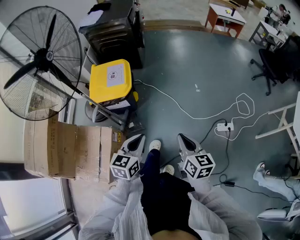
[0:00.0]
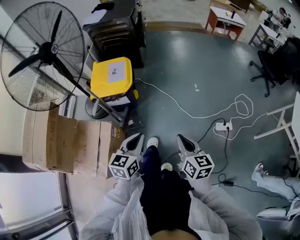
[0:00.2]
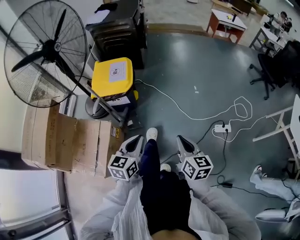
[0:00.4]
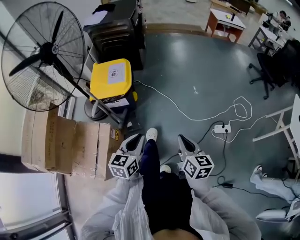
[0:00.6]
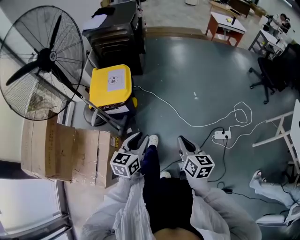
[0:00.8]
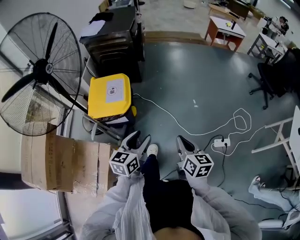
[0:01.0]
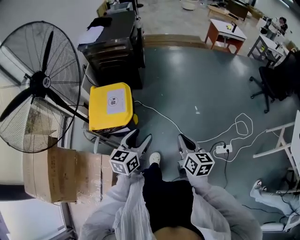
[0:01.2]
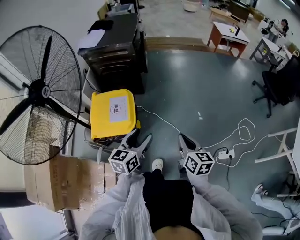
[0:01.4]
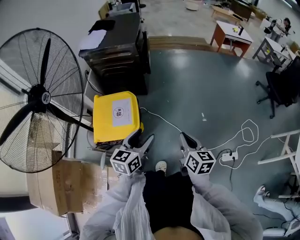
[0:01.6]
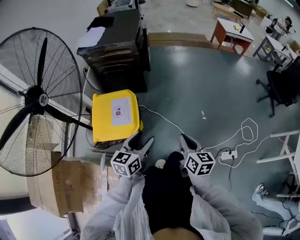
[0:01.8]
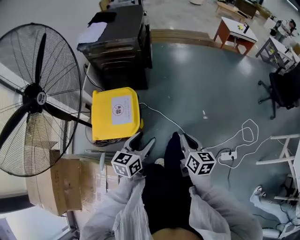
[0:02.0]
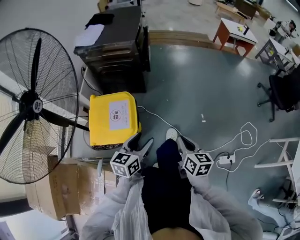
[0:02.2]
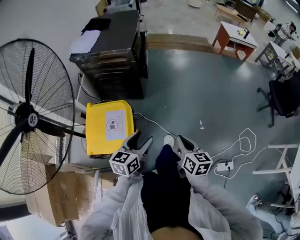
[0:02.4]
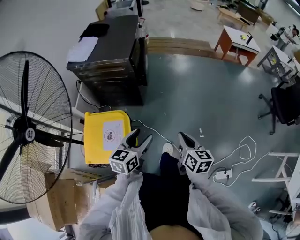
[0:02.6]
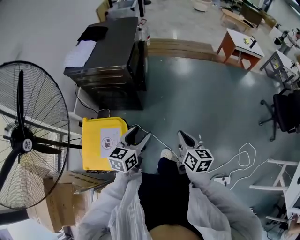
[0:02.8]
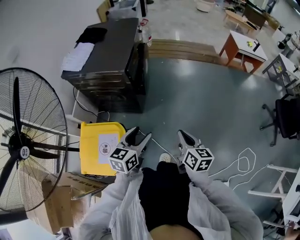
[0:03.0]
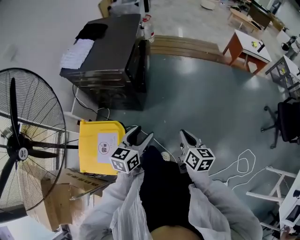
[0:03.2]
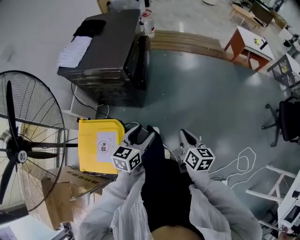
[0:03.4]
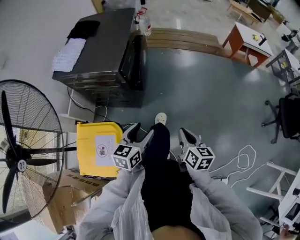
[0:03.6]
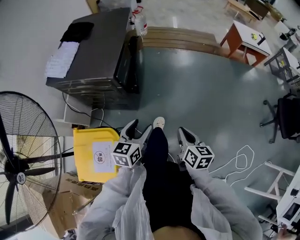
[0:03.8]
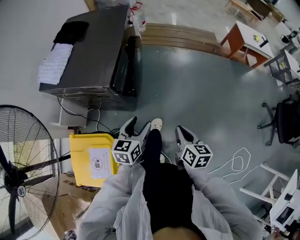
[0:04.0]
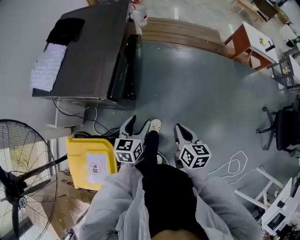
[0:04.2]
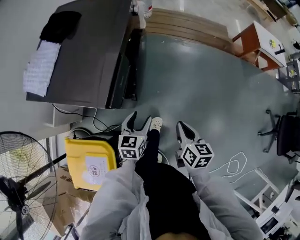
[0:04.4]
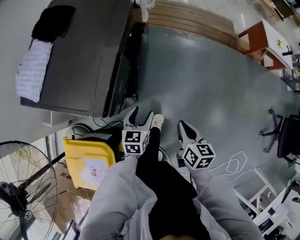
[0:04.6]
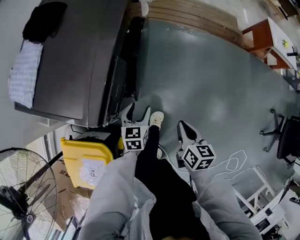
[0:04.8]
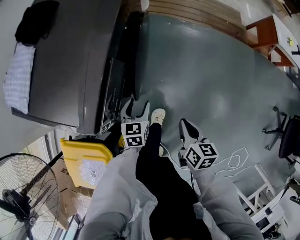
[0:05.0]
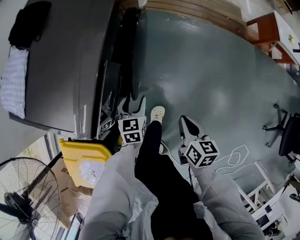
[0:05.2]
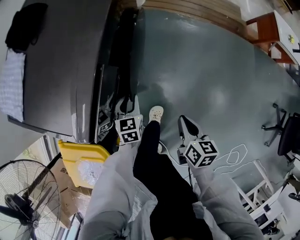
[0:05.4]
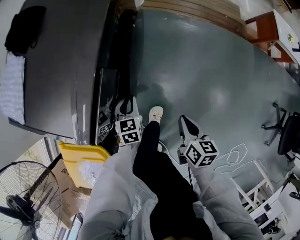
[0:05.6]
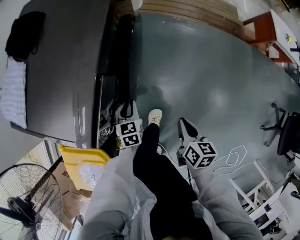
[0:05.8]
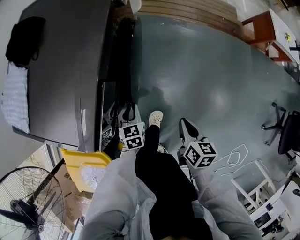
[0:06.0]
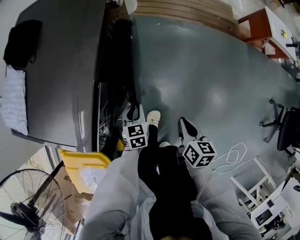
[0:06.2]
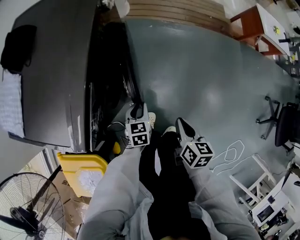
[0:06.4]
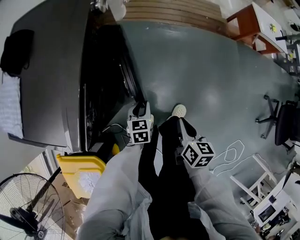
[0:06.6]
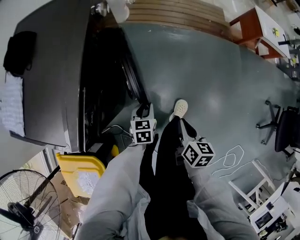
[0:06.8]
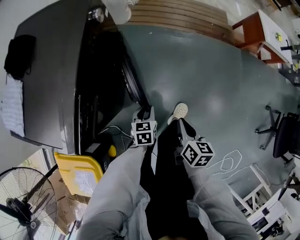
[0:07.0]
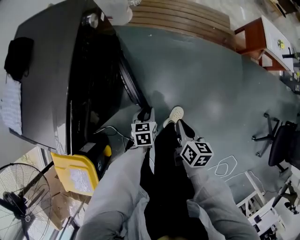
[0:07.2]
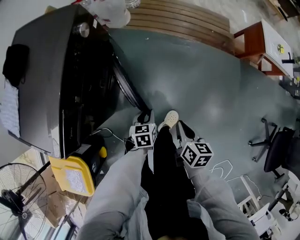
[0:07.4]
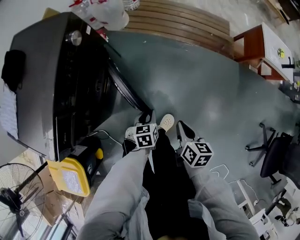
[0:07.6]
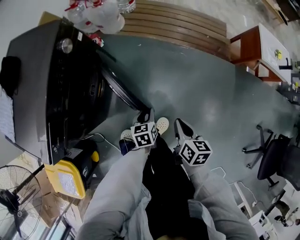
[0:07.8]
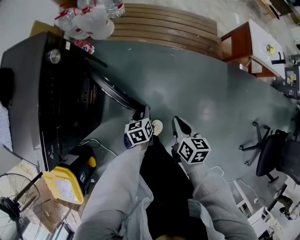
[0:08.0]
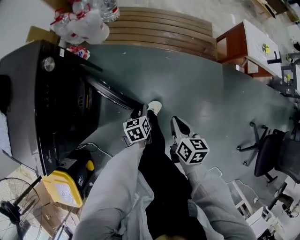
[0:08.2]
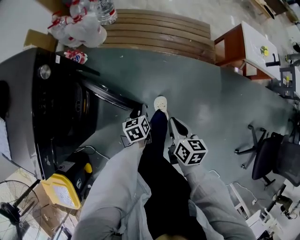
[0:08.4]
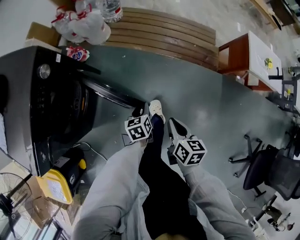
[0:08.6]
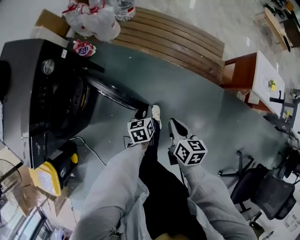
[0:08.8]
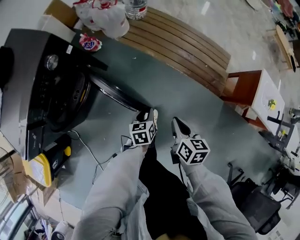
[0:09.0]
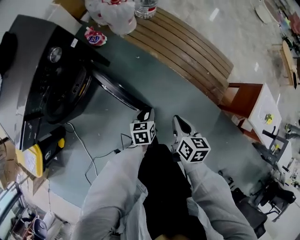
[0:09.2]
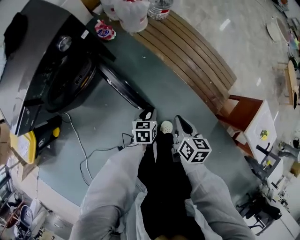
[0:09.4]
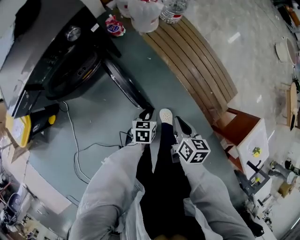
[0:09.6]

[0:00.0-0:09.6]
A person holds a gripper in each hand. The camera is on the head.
0.0 to 1.6 s: The grippers both shift forward by roughly 30 cm. The left gripper opens.
1.6 to 3.2 s: The two grippers go some 35 cm forward.
3.2 to 4.8 s: Both grippers travel together forward and downward, approximately 40 cm. The left gripper changes its angle by about 30 degrees.
4.8 to 6.4 s: The grippers both shift to the right by about 5 cm. The left gripper closes its fingers.
6.4 to 8.0 s: The two grippers go approximately 30 cm to the right and forward. The left gripper turns by roughly 20 degrees.
8.0 to 9.6 s: The right gripper ends up roughly 30 cm from where it was, and rotates roughly 40 degrees. The left gripper ends up about 25 cm from where it was, and swivels about 20 degrees.

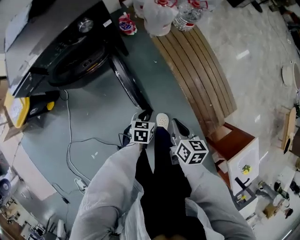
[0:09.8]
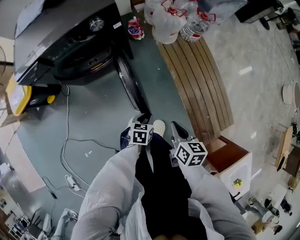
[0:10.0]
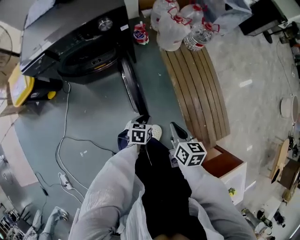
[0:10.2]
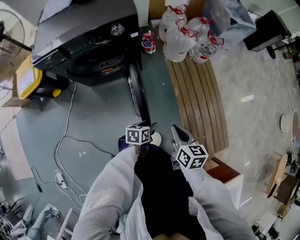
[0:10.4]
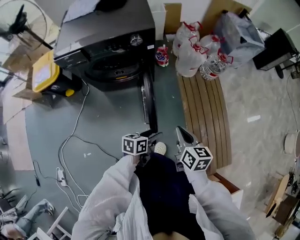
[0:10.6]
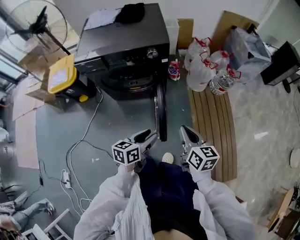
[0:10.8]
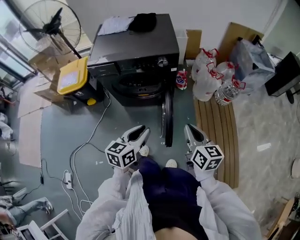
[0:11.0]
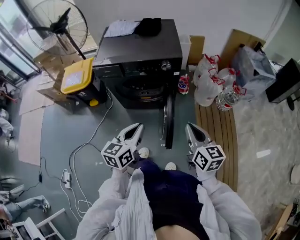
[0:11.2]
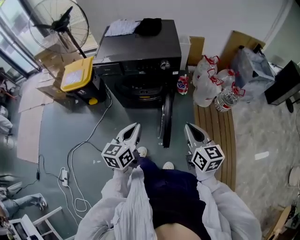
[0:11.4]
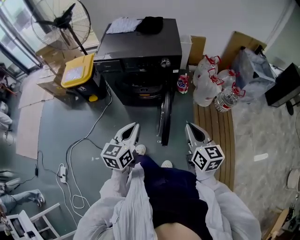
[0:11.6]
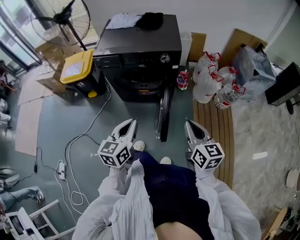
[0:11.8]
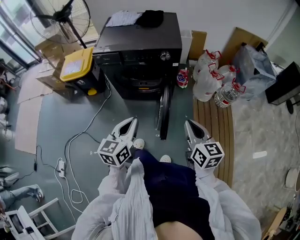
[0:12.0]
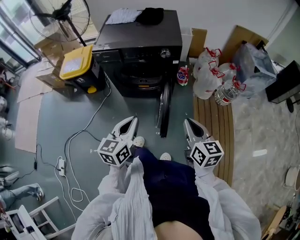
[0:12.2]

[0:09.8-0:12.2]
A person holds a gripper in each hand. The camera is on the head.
9.8 to 11.0 s: The right gripper heads upward, covering some 20 cm, and turns by some 40 degrees, while the left gripper shifts approximately 30 cm upward, tilts its fingers roughly 30 degrees upward, and opens, then closes again.
11.0 to 12.2 s: The left gripper ends up about 5 cm from where it was, and closes up.

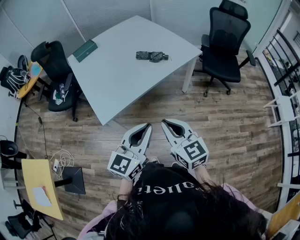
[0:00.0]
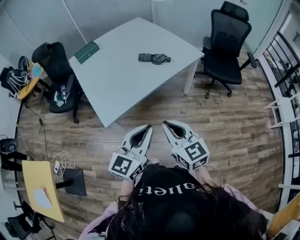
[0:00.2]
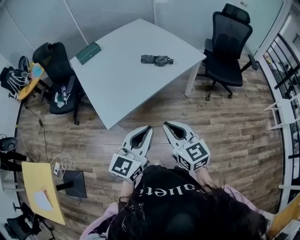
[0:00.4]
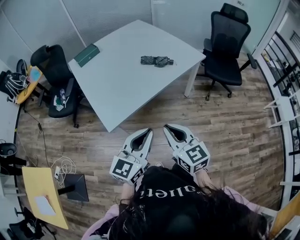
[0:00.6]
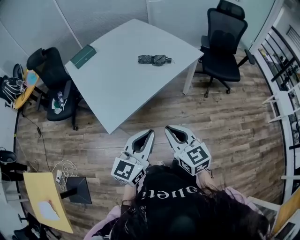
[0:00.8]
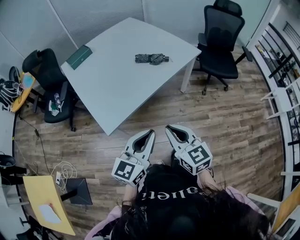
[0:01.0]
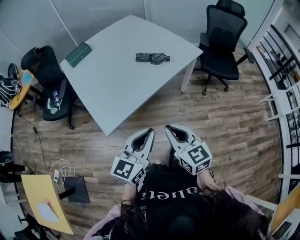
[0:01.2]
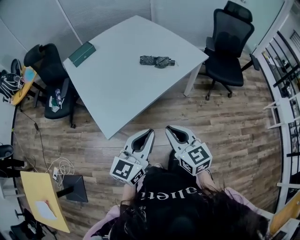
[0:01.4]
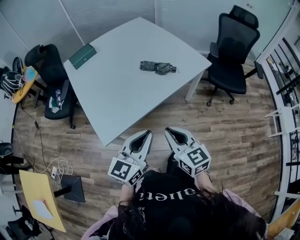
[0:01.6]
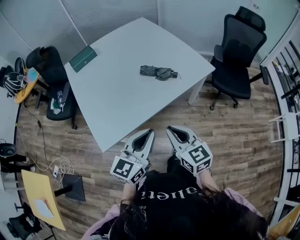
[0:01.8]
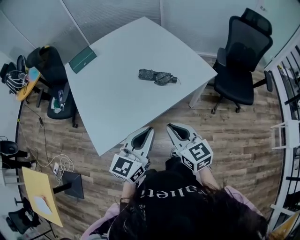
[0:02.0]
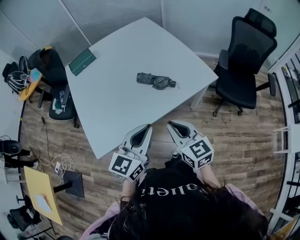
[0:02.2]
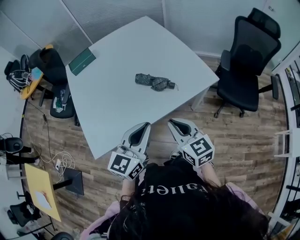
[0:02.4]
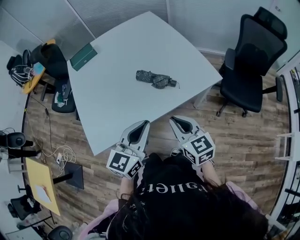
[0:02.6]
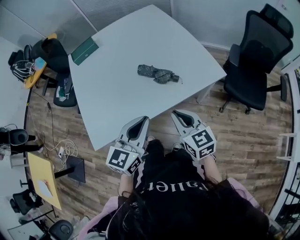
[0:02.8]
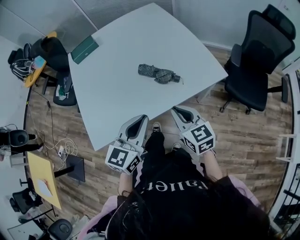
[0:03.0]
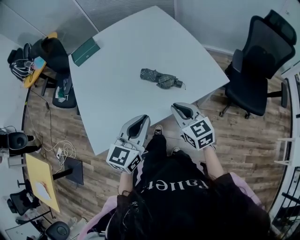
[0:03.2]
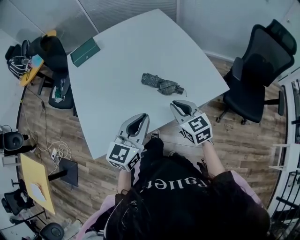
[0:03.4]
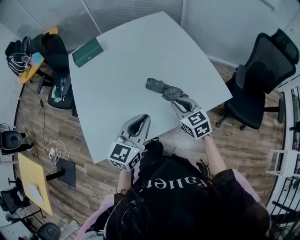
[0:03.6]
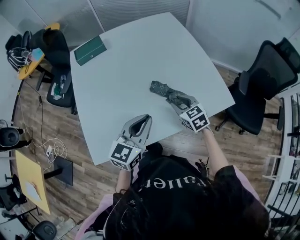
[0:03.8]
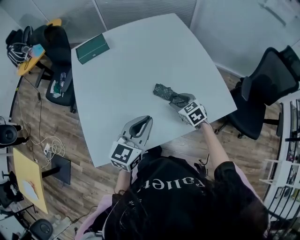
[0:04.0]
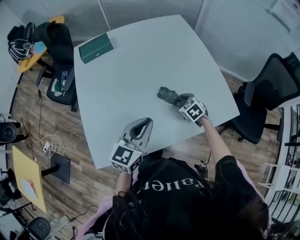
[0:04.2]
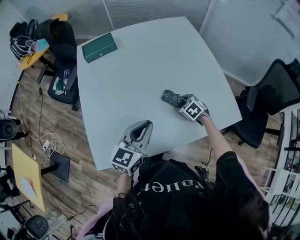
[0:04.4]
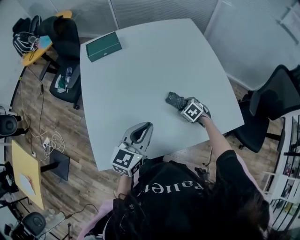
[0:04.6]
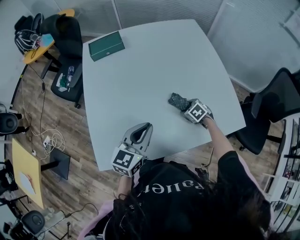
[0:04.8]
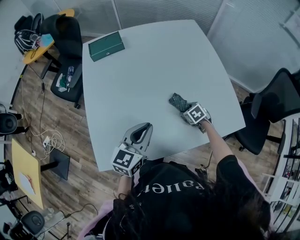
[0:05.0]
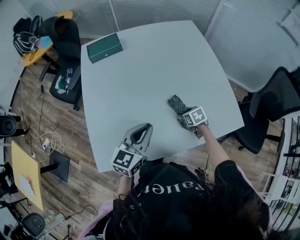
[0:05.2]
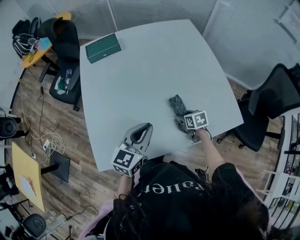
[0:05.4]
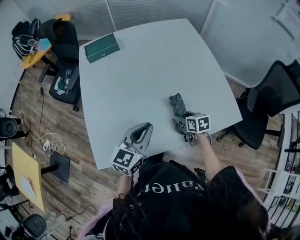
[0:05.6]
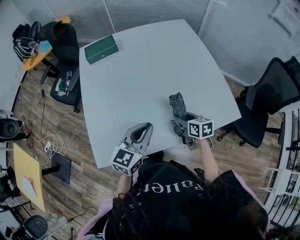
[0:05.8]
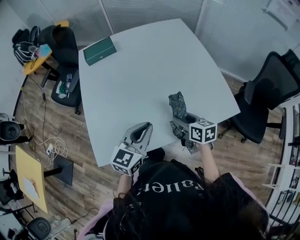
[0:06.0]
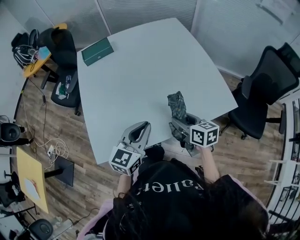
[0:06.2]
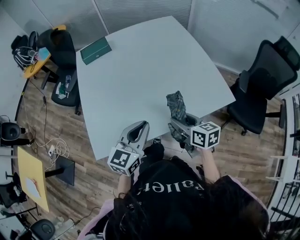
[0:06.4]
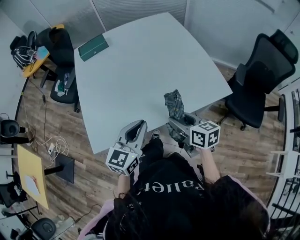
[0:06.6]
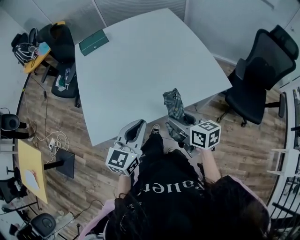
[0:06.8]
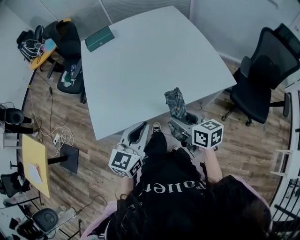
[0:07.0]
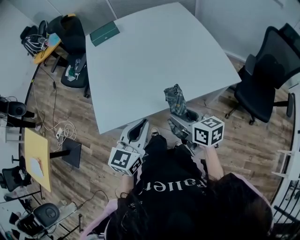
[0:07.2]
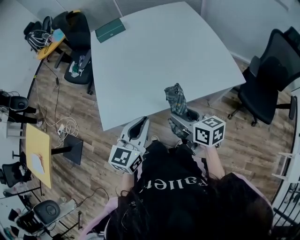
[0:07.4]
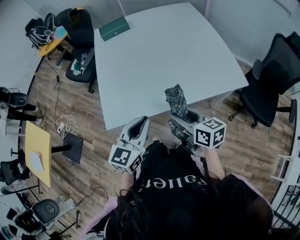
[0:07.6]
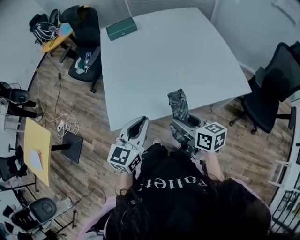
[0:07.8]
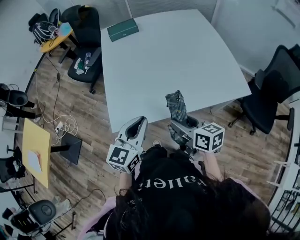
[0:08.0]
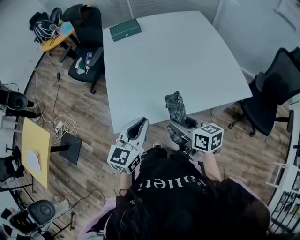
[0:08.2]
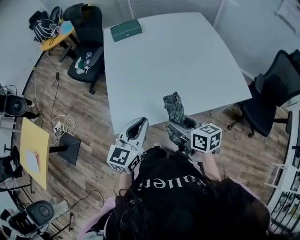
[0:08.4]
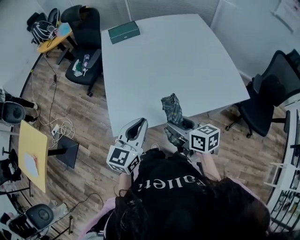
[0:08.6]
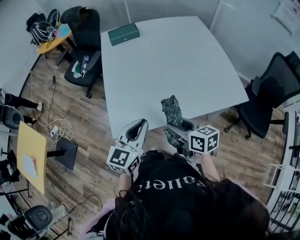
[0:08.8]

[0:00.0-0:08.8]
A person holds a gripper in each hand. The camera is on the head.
0.0 to 1.4 s: The left gripper goes about 10 cm forward and to the left; the right gripper heads forward, covering some 5 cm.
1.4 to 3.0 s: The two grippers go some 30 cm forward and to the right.
3.0 to 4.4 s: The left gripper heads forward and to the left, covering roughly 20 cm. Meanwhile the right gripper moves forward and downward, about 35 cm, tips its fingers downward by roughly 40 degrees, and opens.
4.4 to 5.8 s: The right gripper heads backward and upward, covering some 10 cm, and rotates around the line of its fingers by approximately 40 degrees, clockwise from behind.
5.8 to 7.4 s: The right gripper moves backward and upward, roughly 25 cm. The left gripper travels backward by roughly 20 cm.
7.4 to 8.8 s: The left gripper heads to the left and forward, covering some 10 cm; the right gripper shifts roughly 10 cm to the left.

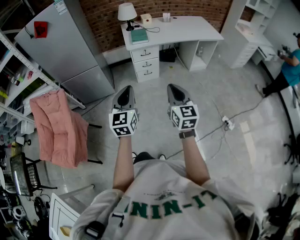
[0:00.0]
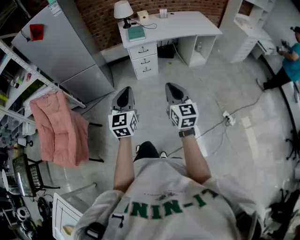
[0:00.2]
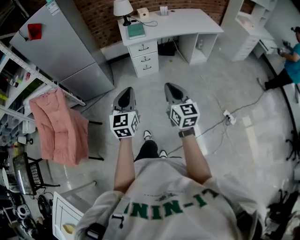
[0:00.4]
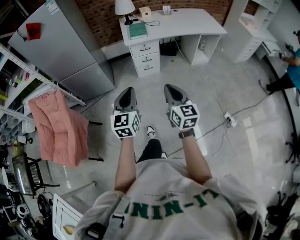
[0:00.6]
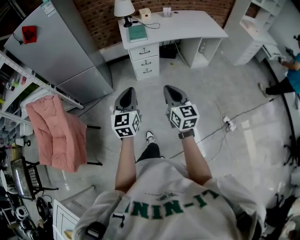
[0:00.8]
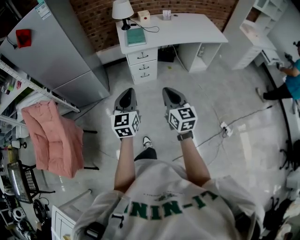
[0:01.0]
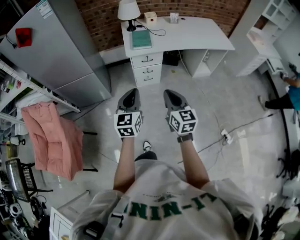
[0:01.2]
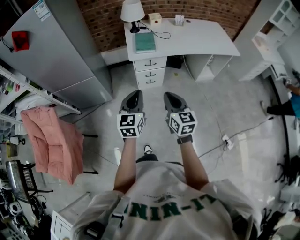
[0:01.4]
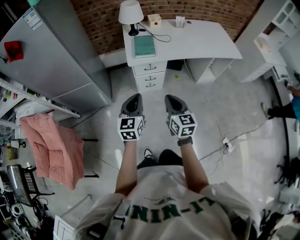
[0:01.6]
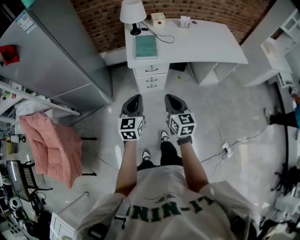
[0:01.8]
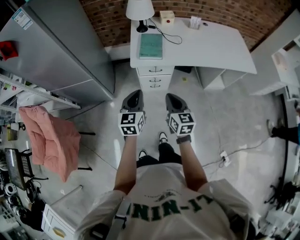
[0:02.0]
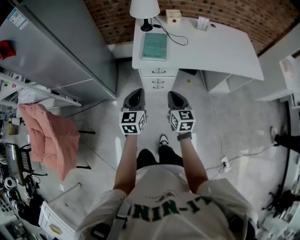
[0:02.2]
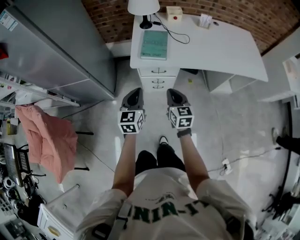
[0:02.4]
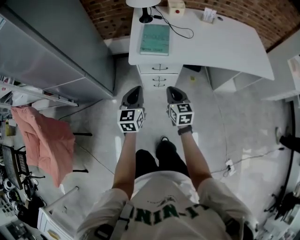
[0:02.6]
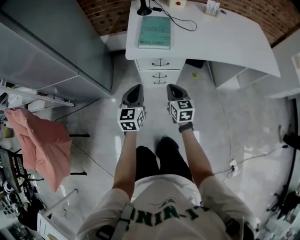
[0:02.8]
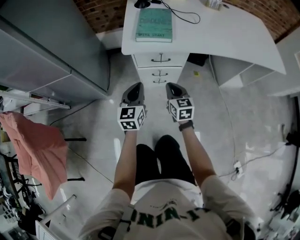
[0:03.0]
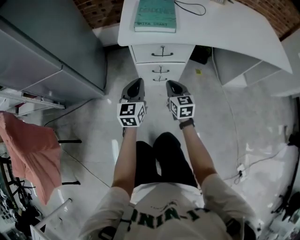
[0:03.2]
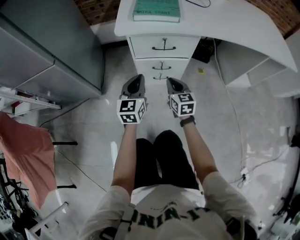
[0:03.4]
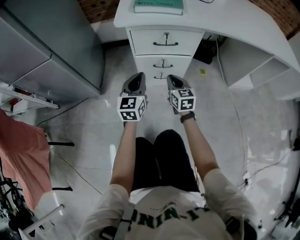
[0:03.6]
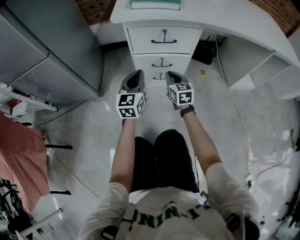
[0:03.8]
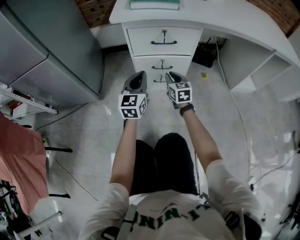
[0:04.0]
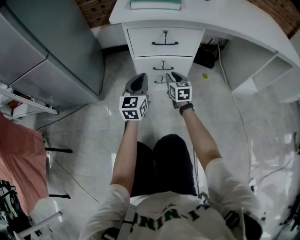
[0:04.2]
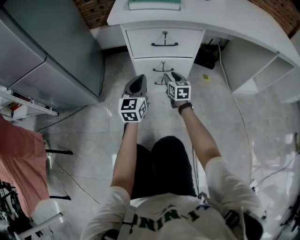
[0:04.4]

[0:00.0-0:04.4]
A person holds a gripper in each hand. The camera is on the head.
0.0 to 1.4 s: Both grippers travel together forward, approximately 30 cm.
1.4 to 3.0 s: Both grippers travel together downward and forward, some 50 cm.
3.0 to 4.4 s: The right gripper is displaced downward and forward by about 30 cm, and opens up; the left gripper goes about 20 cm downward.
